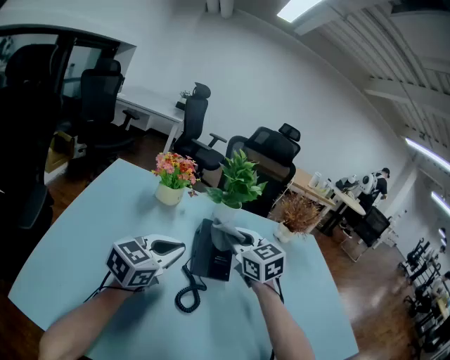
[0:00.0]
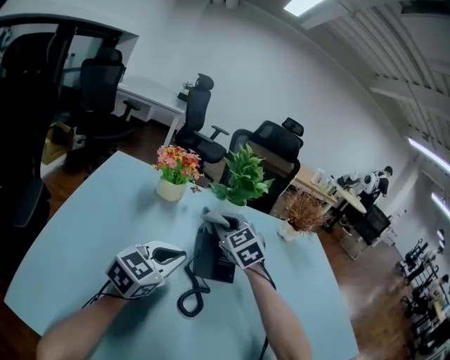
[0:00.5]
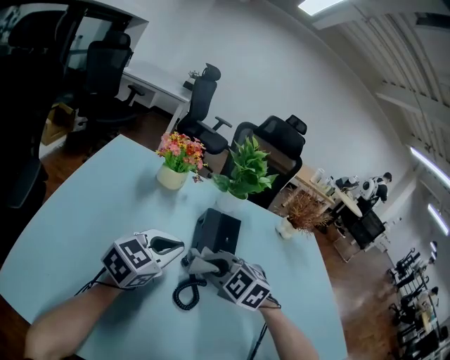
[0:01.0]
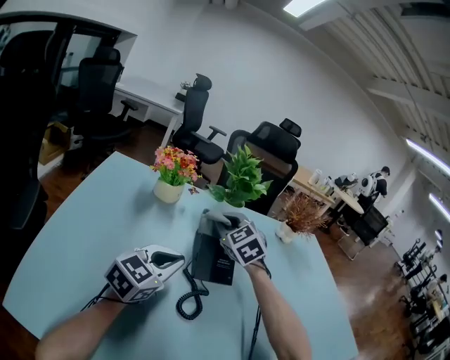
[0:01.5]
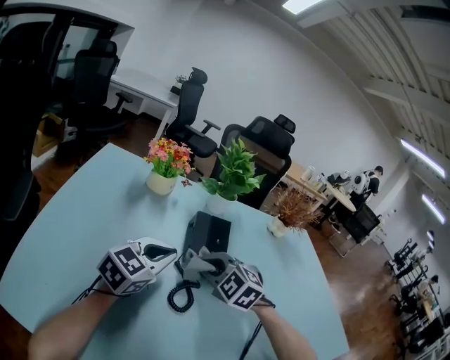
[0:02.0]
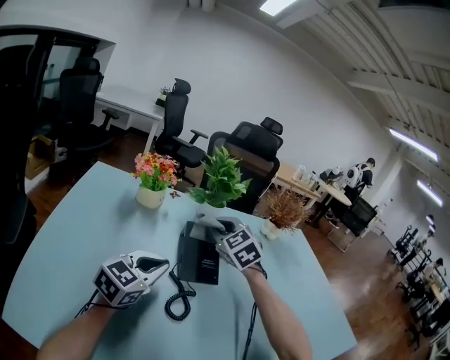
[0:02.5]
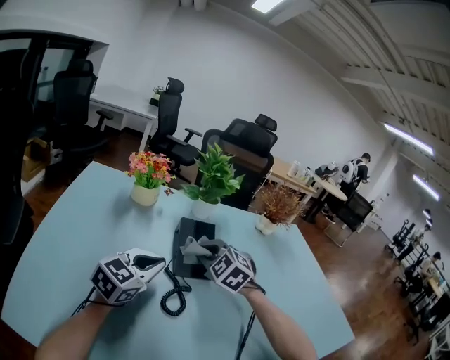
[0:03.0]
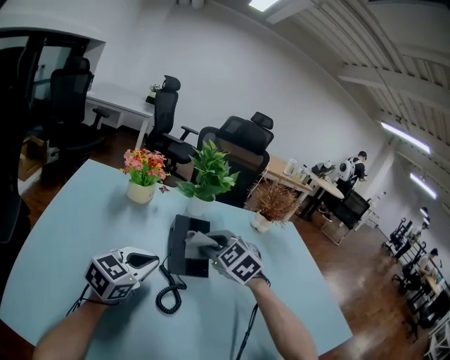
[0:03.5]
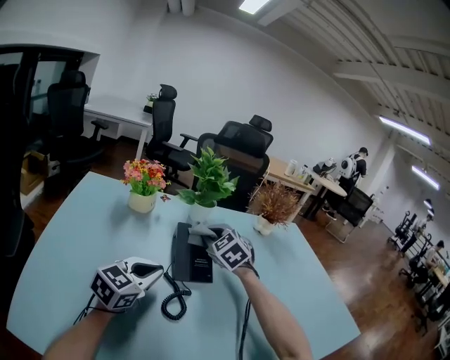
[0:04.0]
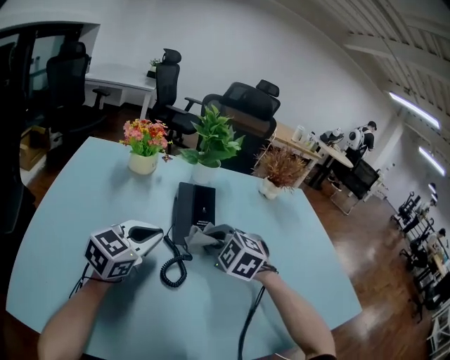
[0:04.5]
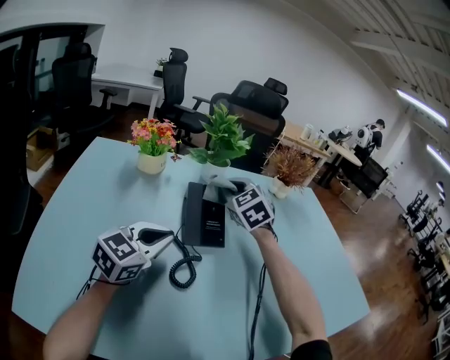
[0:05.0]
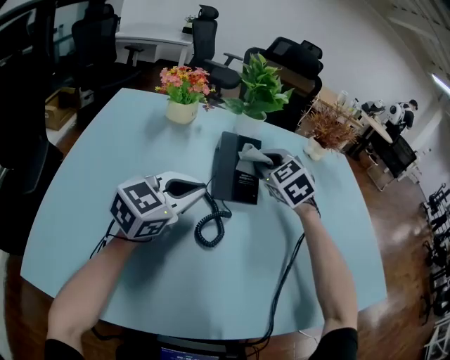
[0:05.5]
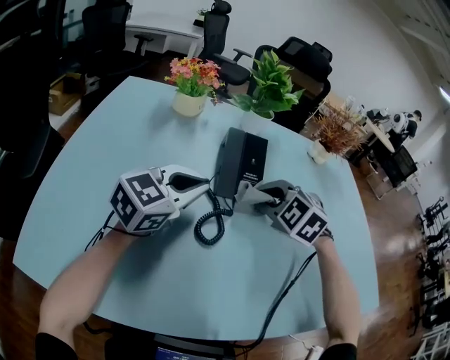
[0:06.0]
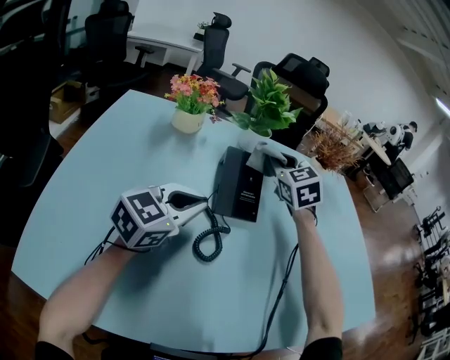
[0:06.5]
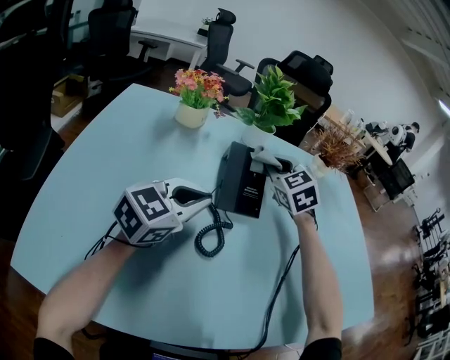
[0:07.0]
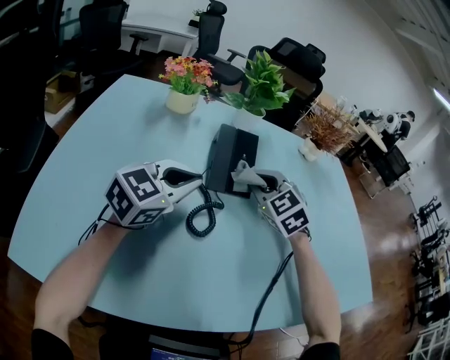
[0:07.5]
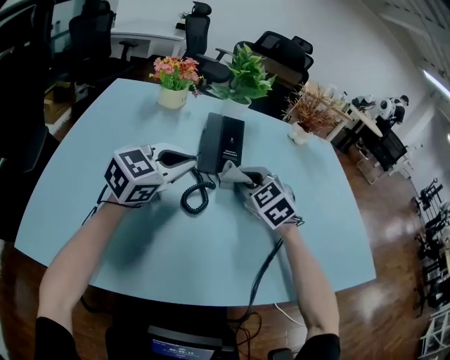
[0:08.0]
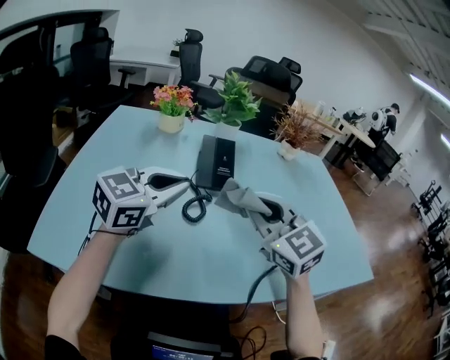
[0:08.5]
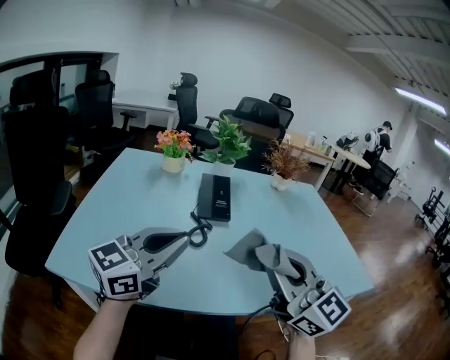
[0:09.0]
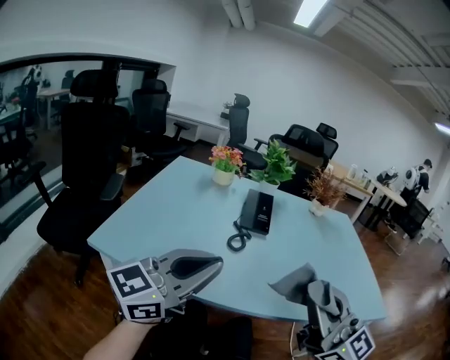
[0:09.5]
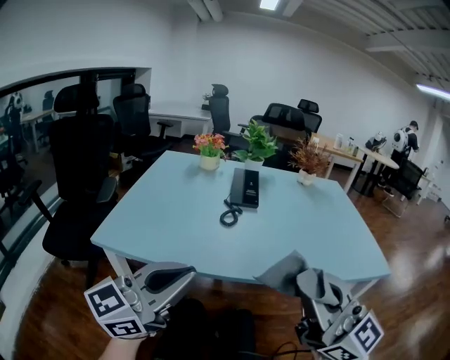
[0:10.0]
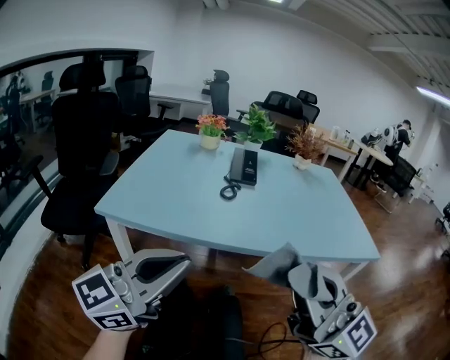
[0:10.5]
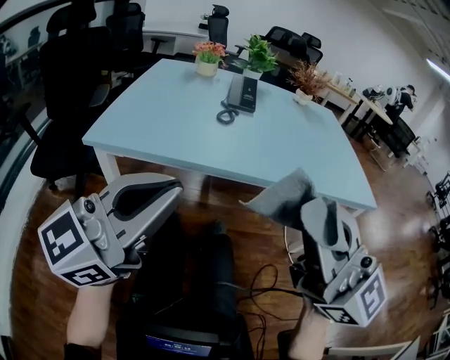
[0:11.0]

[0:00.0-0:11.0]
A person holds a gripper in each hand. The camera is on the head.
0:00.0 to 0:02.0: The right gripper moves forward and backward over approximately 15 cm, changing direction 3 times, and changes its angle by about 40 degrees.
0:02.0 to 0:03.5: The right gripper moves upward and forward, some 10 cm.
0:03.5 to 0:05.5: The right gripper swings forward and backward, approximately 15 cm each way, with 2 reversals.
0:05.5 to 0:07.5: The right gripper goes forward and backward, roughly 15 cm each way, reversing 2 times.
0:07.5 to 0:09.0: Both grippers travel together backward and upward, some 40 cm. The left gripper changes its angle by some 20 degrees, while the right gripper tips its fingers upward by approximately 50 degrees.
0:09.0 to 0:11.0: Both grippers move backward, roughly 40 cm.

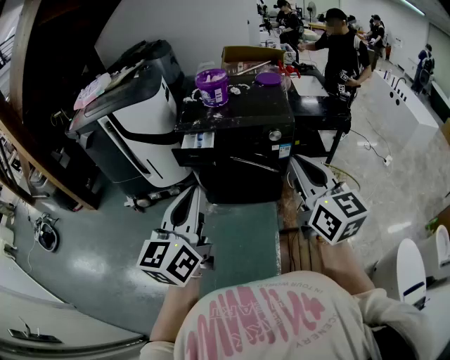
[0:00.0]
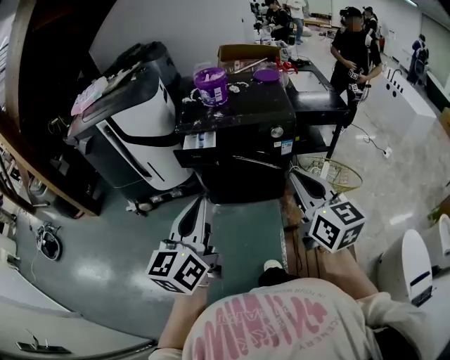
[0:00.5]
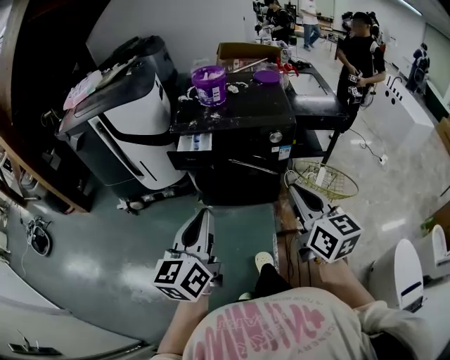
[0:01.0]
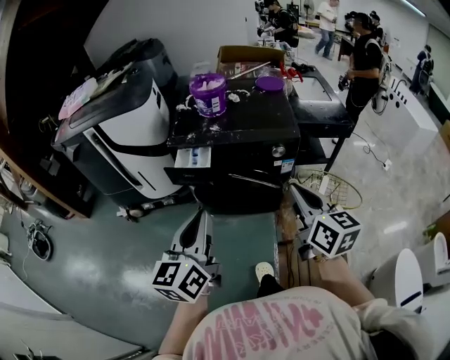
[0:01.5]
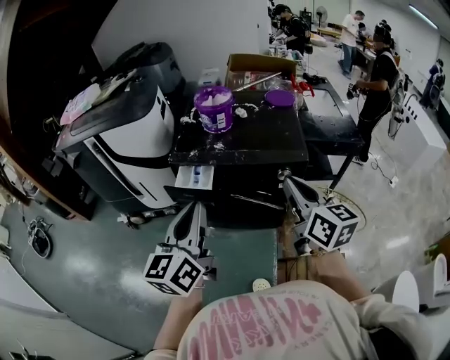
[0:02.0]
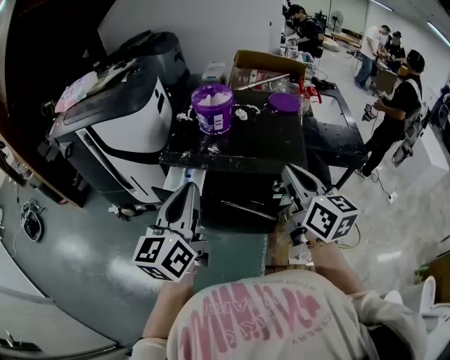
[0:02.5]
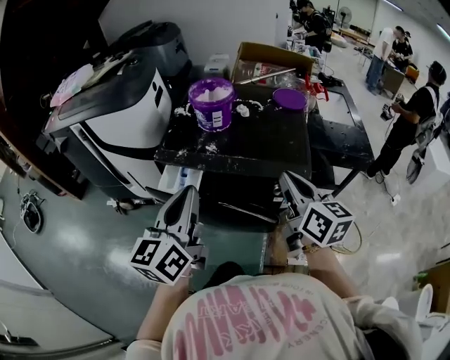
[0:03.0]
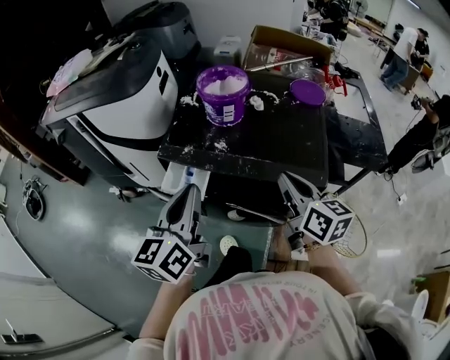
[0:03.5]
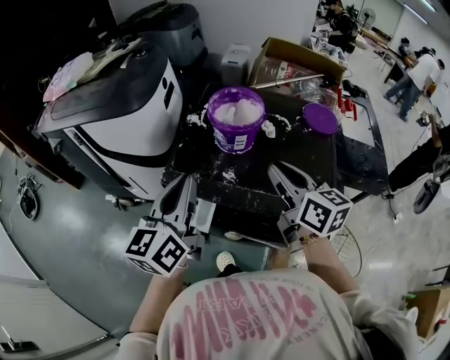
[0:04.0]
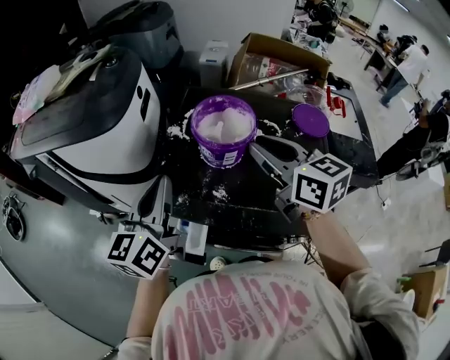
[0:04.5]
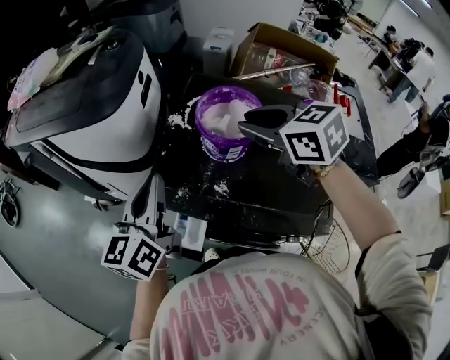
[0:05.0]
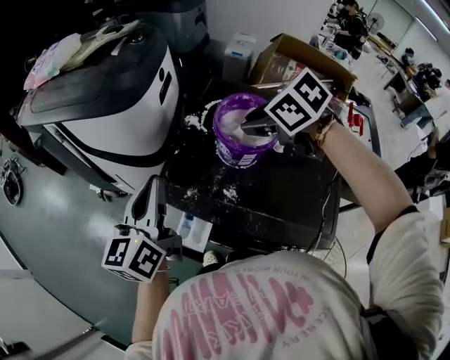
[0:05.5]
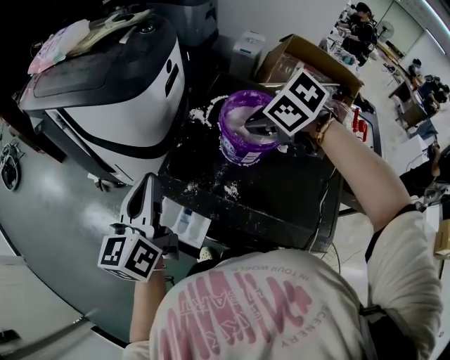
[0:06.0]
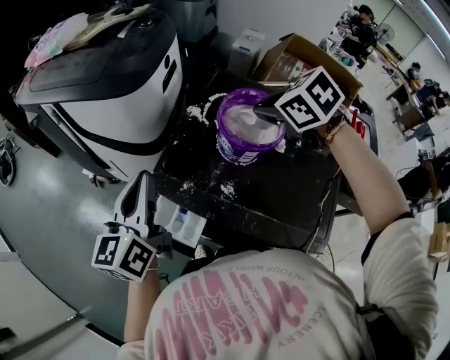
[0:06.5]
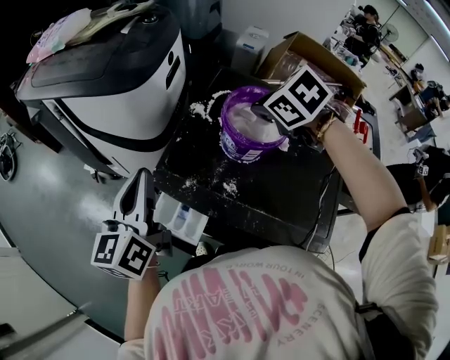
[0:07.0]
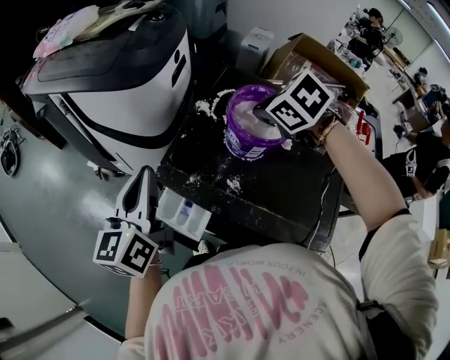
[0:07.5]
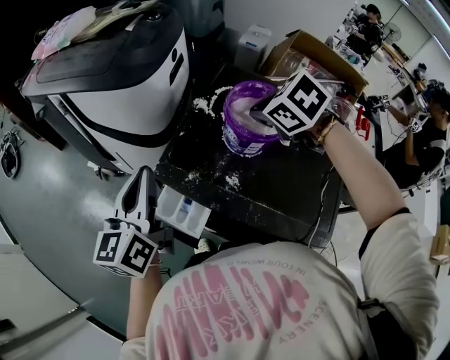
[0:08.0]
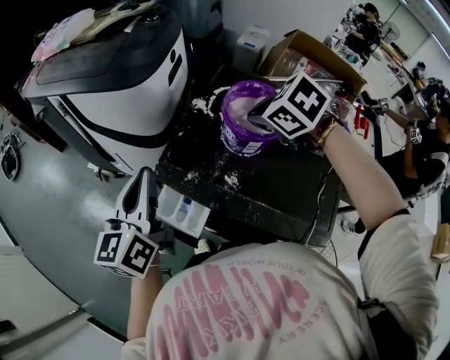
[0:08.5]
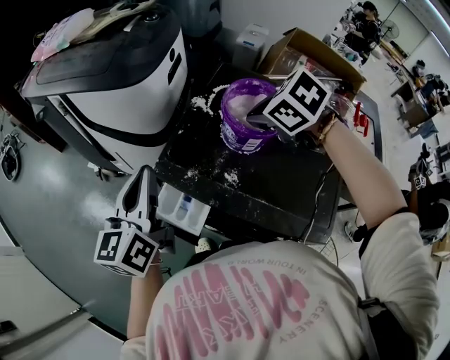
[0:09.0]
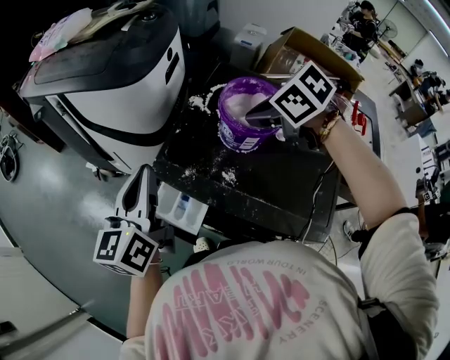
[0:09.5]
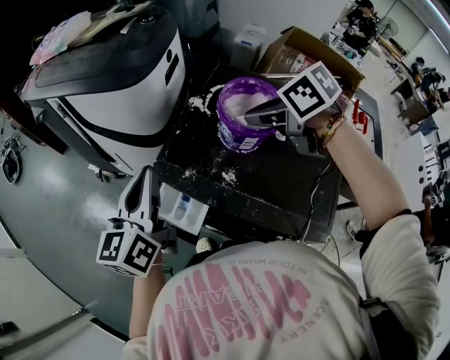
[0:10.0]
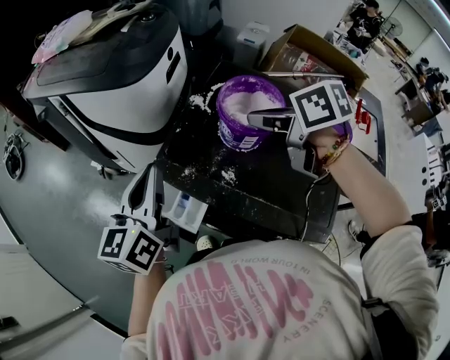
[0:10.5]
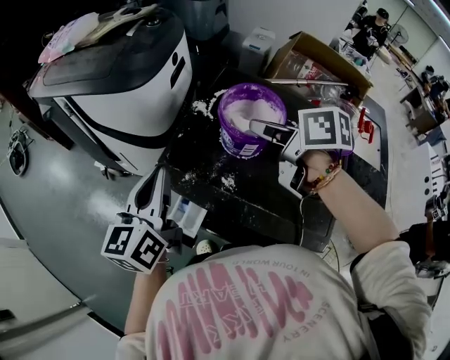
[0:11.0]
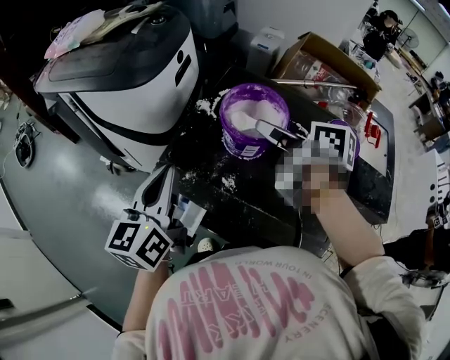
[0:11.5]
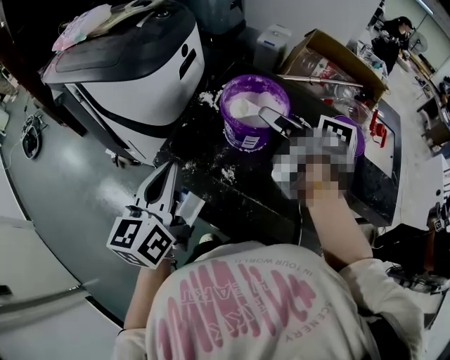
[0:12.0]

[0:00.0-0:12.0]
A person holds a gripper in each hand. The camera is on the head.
0:00.0 to 0:02.0: The grippers both shift forward by about 20 cm.
0:02.0 to 0:04.0: The two grippers go approximately 30 cm forward.
0:04.0 to 0:06.0: The left gripper shifts by roughly 10 cm; the right gripper ends up about 20 cm from where it was, and tips its fingers downward by some 50 degrees.
0:06.0 to 0:08.0: The grippers move only a little.
0:08.0 to 0:10.0: The right gripper swivels some 30 degrees.
0:10.0 to 0:12.0: The left gripper travels to the right by some 5 cm; the right gripper shifts by roughly 5 cm, and angles its fingers upward, by some 40 degrees.

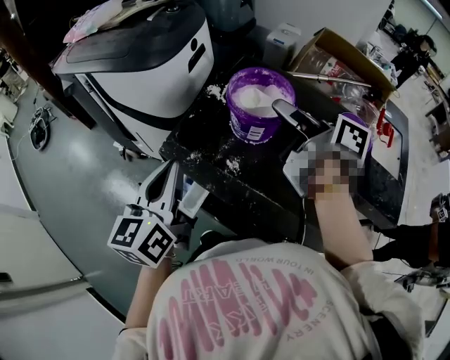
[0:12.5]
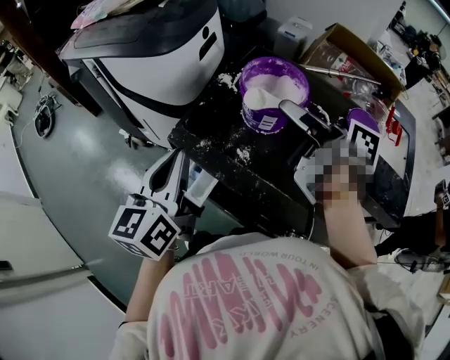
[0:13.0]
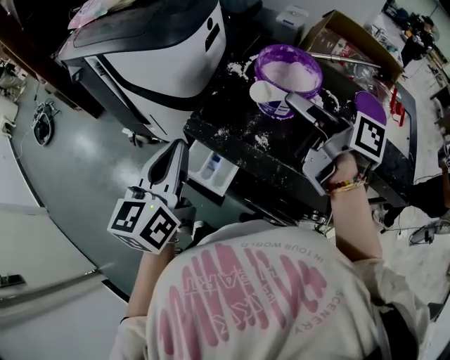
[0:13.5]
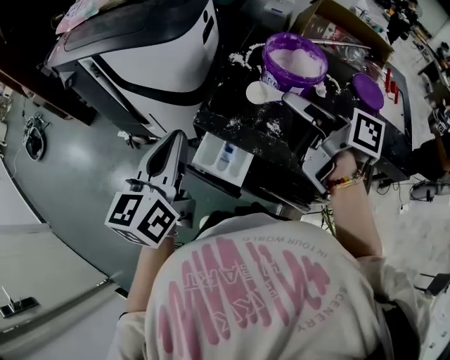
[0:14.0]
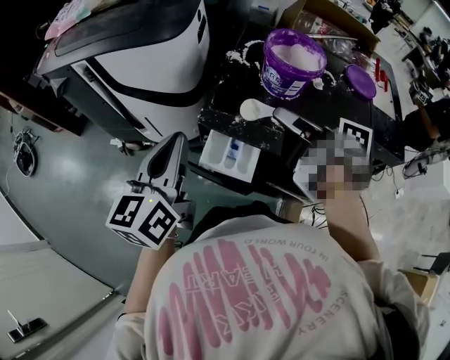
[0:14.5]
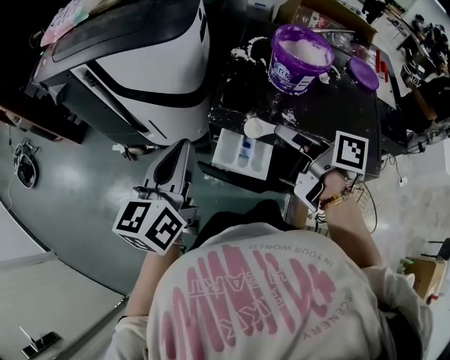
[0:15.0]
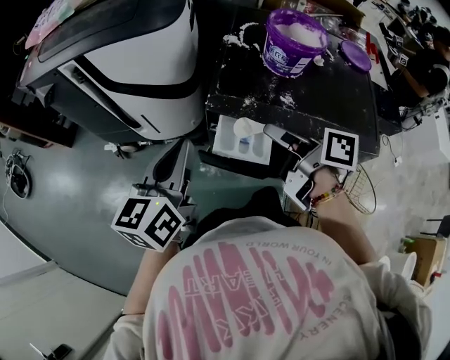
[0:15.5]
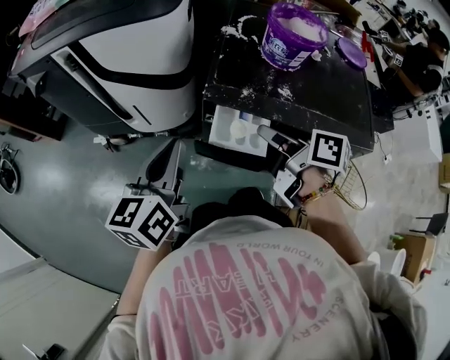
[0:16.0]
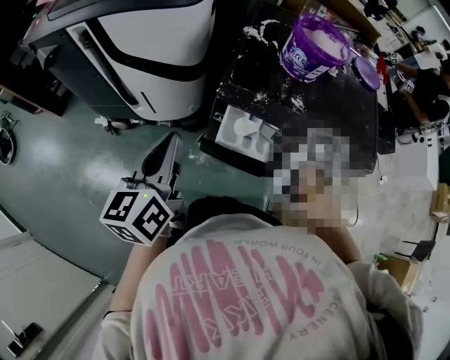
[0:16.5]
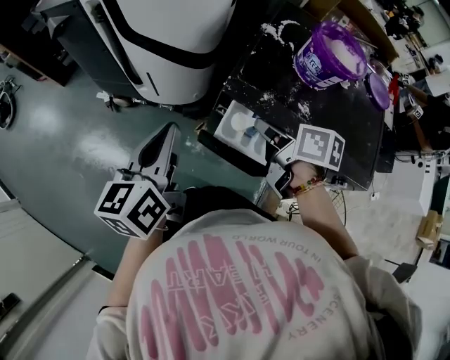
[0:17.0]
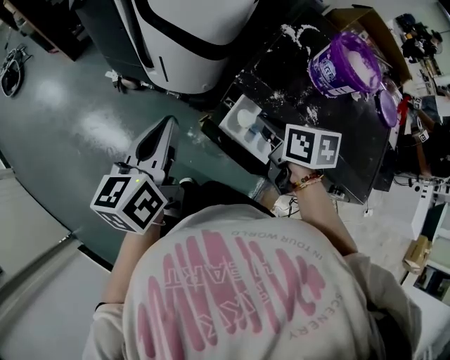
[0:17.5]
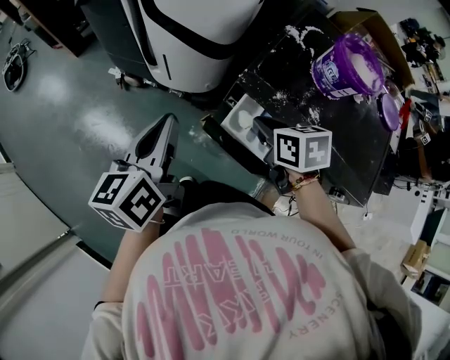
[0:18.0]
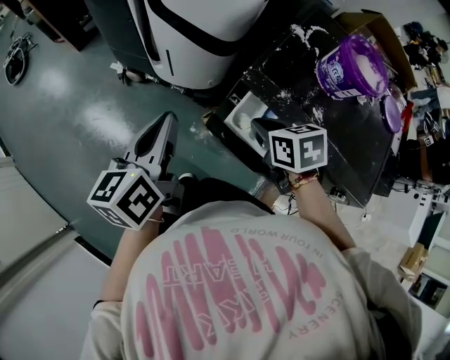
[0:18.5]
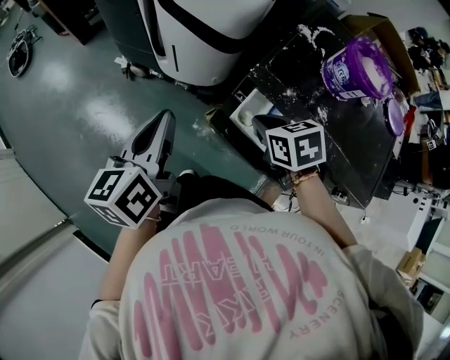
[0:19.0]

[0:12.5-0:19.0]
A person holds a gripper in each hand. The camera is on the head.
0:12.5 to 0:14.5: The right gripper heads to the left and backward, covering about 15 cm; the left gripper heads to the left, covering roughly 15 cm.
0:14.5 to 0:17.0: The right gripper heads downward and to the left, covering about 15 cm, and rotates approximately 30 degrees, while the left gripper goes approximately 10 cm to the left and downward.
0:17.0 to 0:19.0: The left gripper is displaced to the left by roughly 5 cm; the right gripper changes place by approximately 5 cm, and twists approximately 50 degrees counterclockwise, seen from behind.
